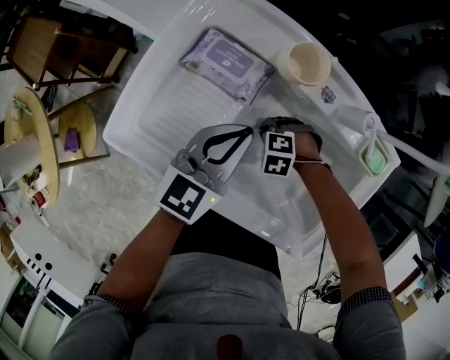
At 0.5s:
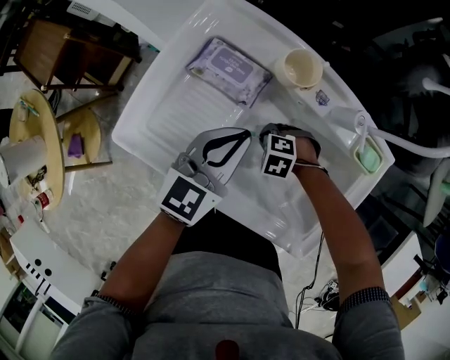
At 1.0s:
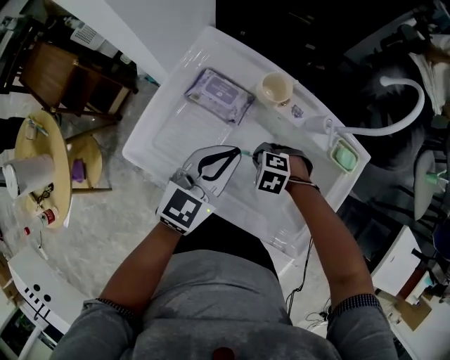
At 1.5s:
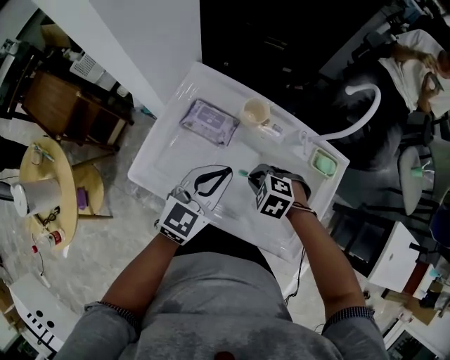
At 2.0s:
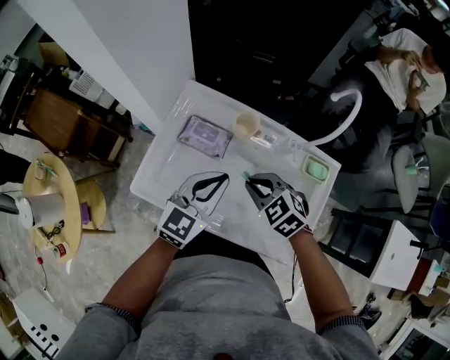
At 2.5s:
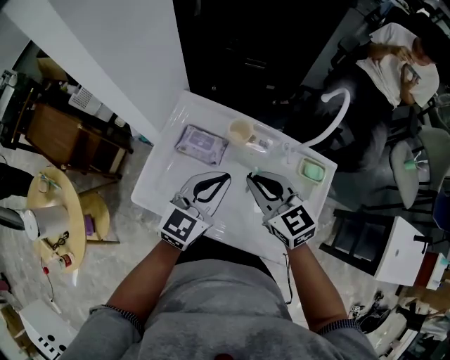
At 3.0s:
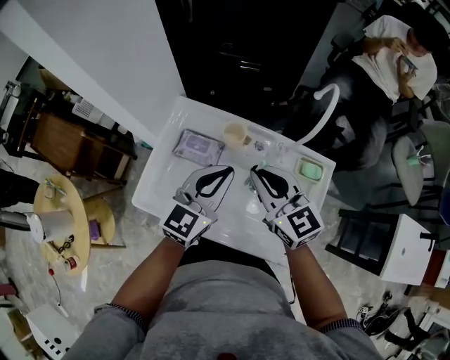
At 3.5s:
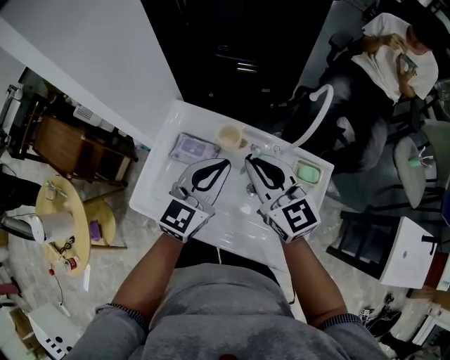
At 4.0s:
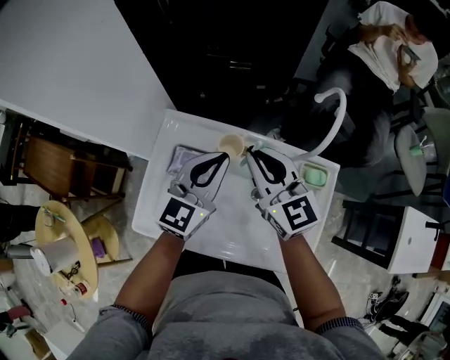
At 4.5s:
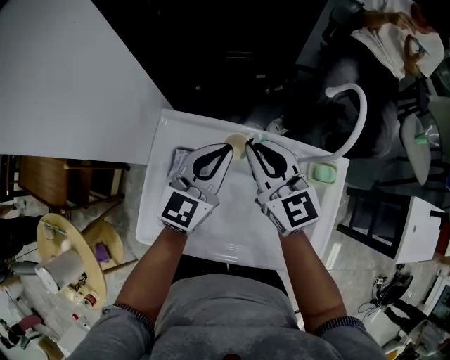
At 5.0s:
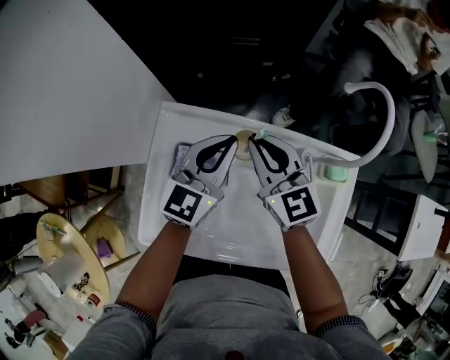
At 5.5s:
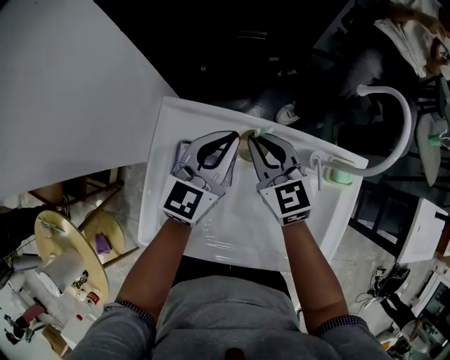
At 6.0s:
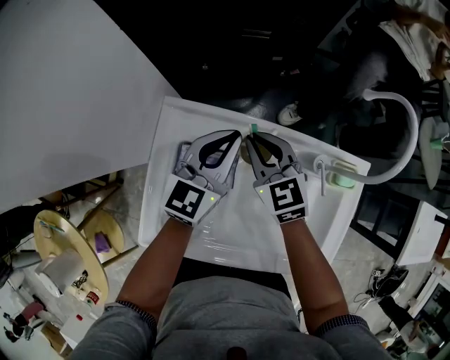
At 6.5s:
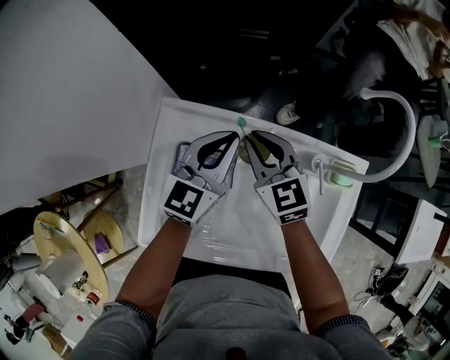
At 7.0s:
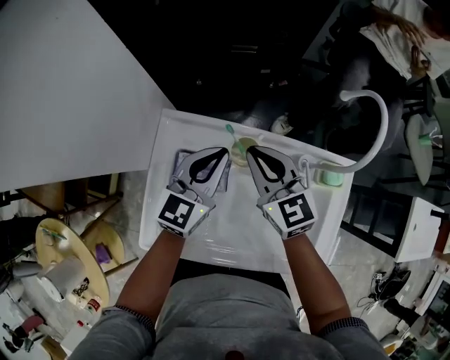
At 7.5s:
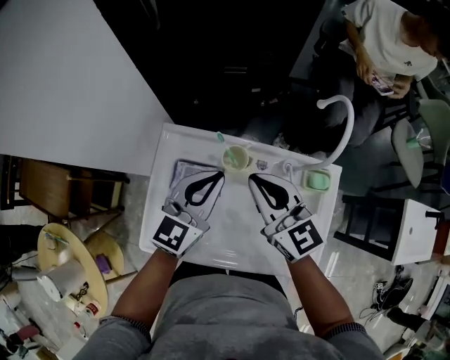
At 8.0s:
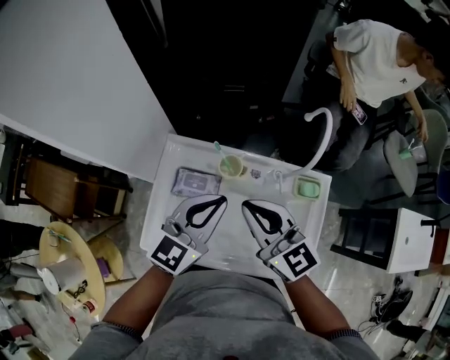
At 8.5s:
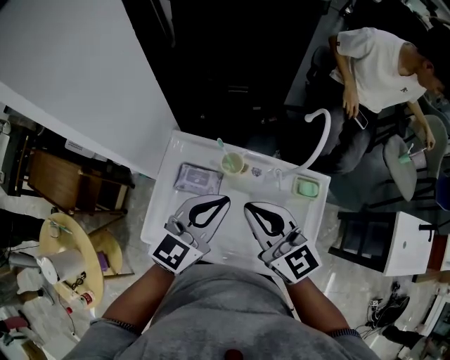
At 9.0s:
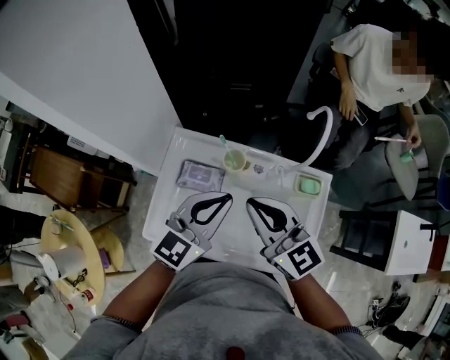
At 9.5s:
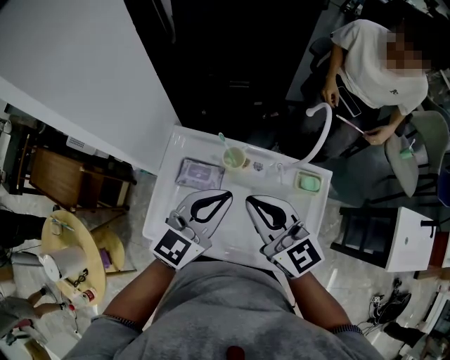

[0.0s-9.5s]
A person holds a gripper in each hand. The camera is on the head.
0.0s to 2.0s: The right gripper is displaced upward by about 30 cm, and rotates about 50 degrees. Meanwhile the left gripper goes roughly 15 cm upward.
2.0s to 4.0s: The left gripper goes approximately 10 cm forward. The right gripper goes approximately 20 cm forward and upward, and tilts its fingers about 40 degrees upward.
4.0s to 5.5s: Both grippers travel together downward and forward, about 15 cm.
5.5s to 7.5s: Both grippers travel together upward and backward, roughly 15 cm.
7.5s to 9.5s: Both grippers move backward and upward, roughly 10 cm.

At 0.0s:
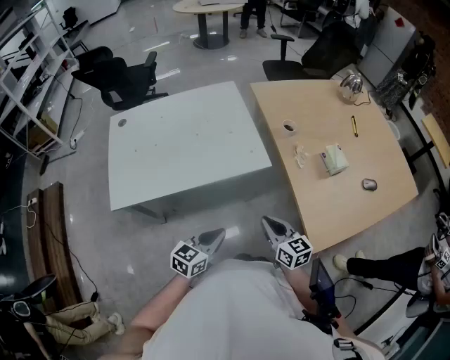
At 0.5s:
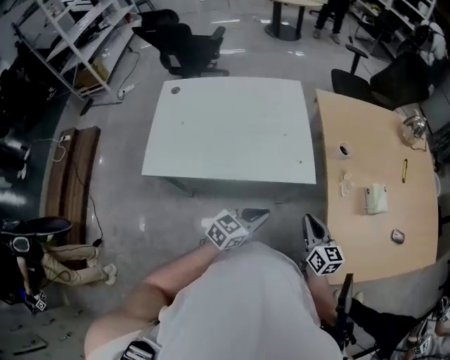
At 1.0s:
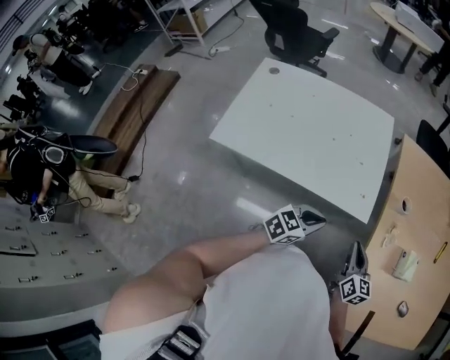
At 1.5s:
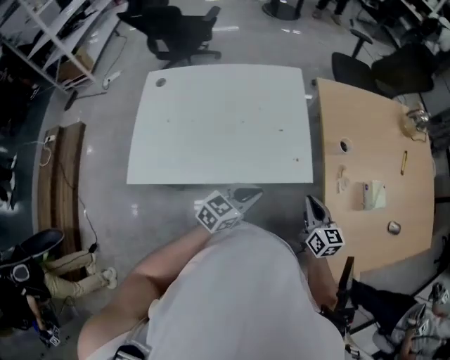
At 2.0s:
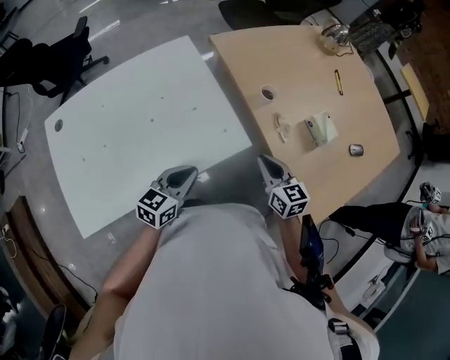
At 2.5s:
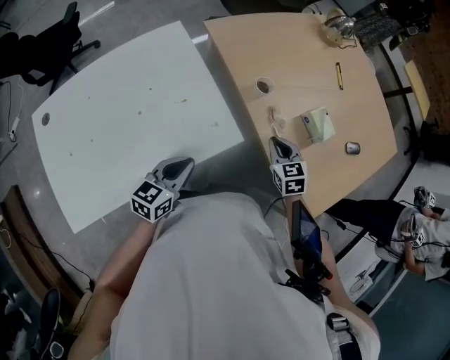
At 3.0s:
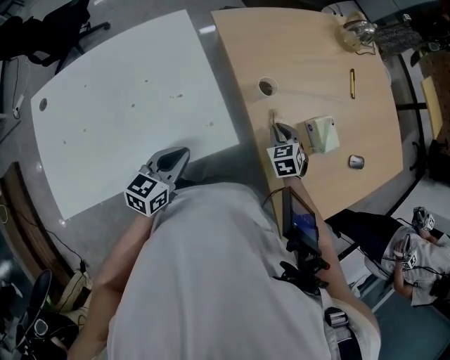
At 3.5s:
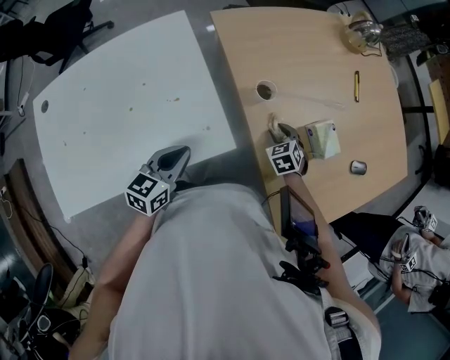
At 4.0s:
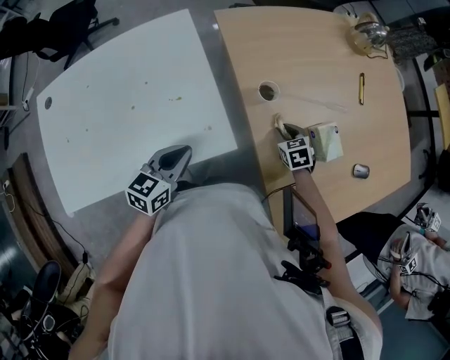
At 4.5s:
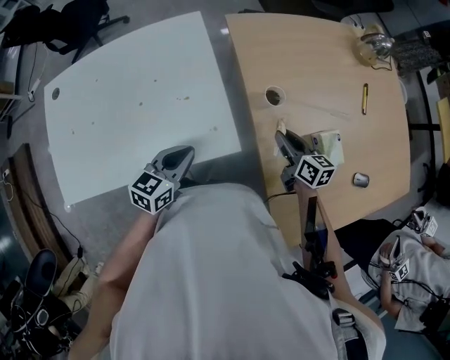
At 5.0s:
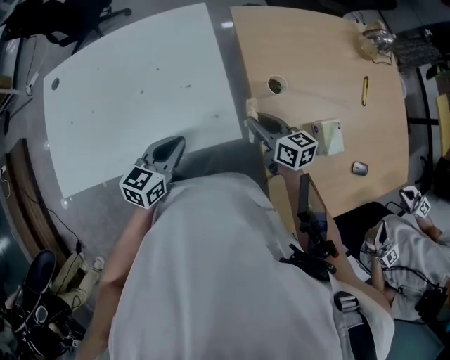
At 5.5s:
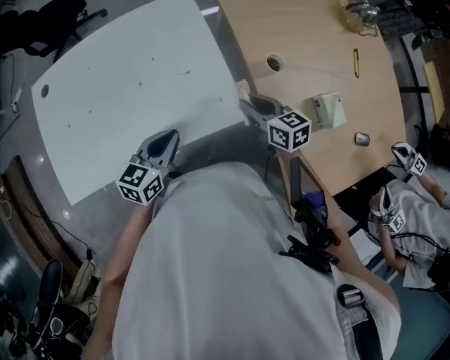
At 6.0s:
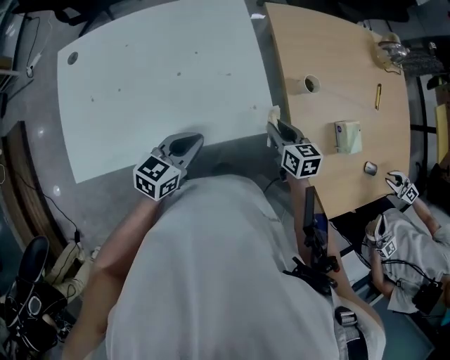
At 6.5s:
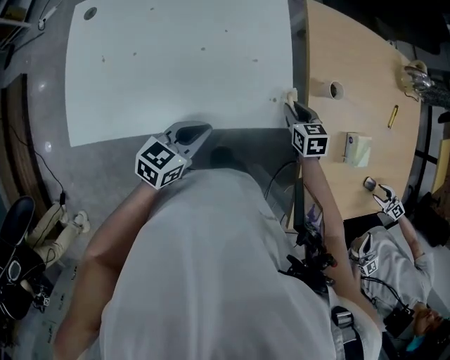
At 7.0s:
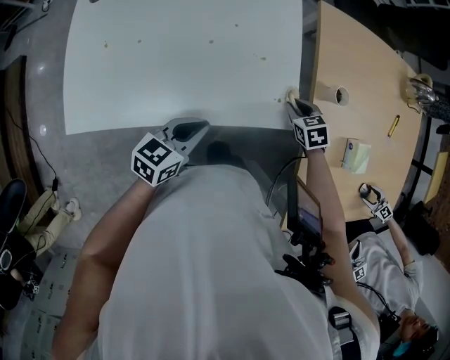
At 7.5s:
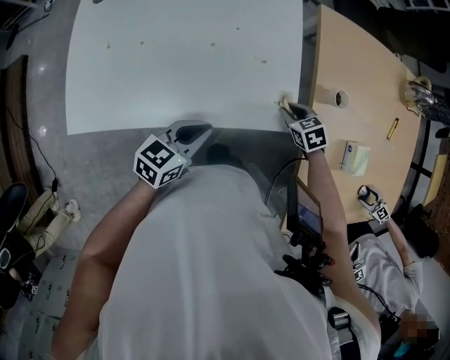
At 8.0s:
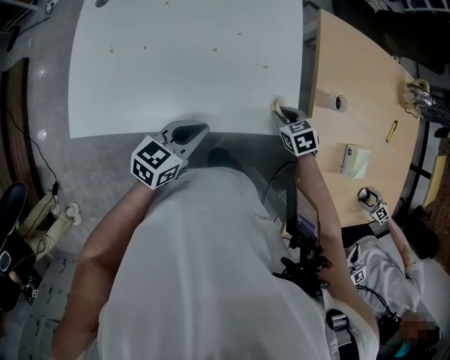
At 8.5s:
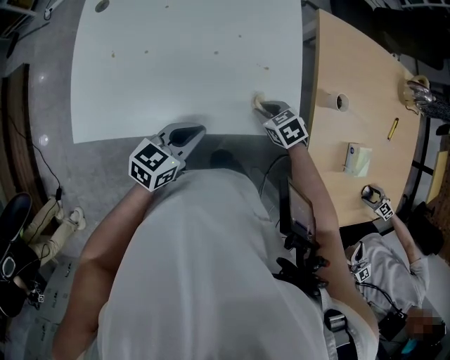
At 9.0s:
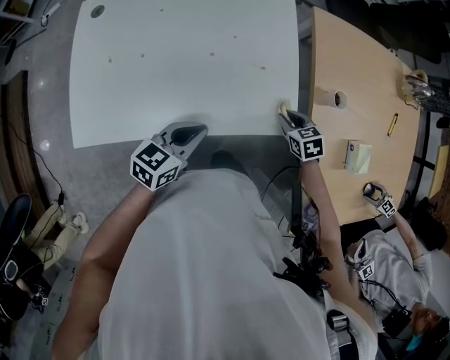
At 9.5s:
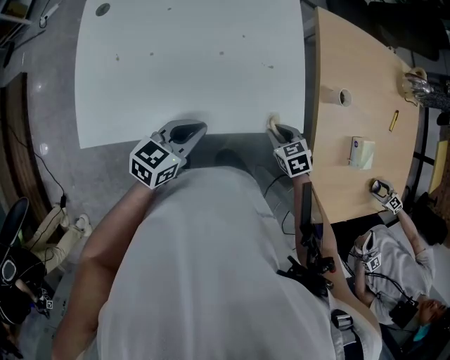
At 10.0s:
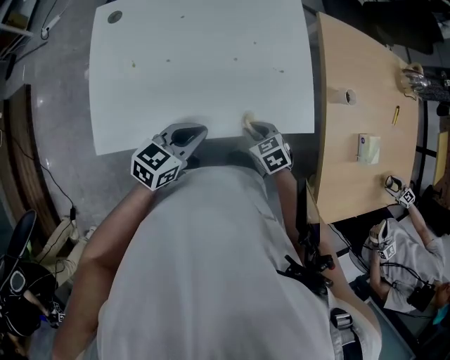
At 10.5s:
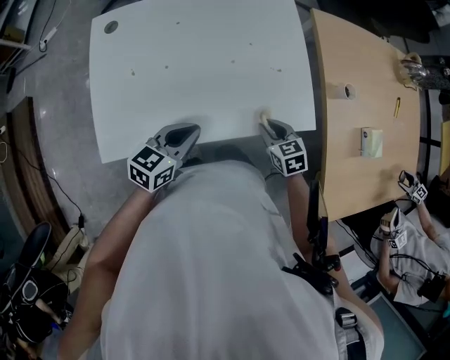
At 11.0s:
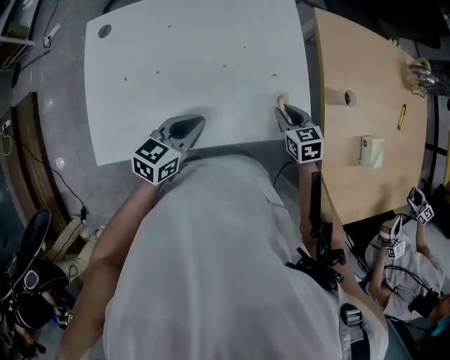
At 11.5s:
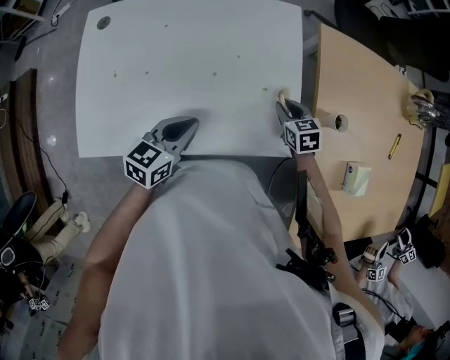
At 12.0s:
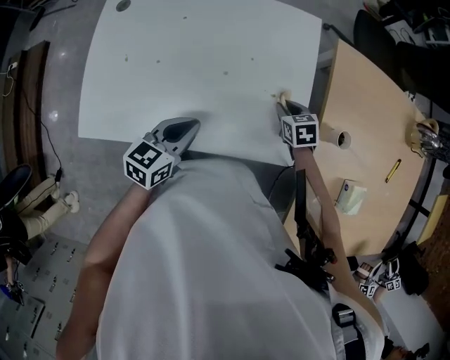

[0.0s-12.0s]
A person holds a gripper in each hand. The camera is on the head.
0.0s to 2.0s: The two grippers go some 20 cm forward.
2.0s to 4.0s: The right gripper moves forward, downward and to the right, roughly 25 cm, and tilts its fingers some 30 degrees downward, while the left gripper shifts roughly 10 cm forward.
4.0s to 6.0s: The right gripper is displaced to the left and upward by roughly 20 cm, and swivels approximately 30 degrees; the left gripper moves to the left and backward, about 10 cm.
6.0s to 8.0s: The right gripper heads downward, covering approximately 10 cm, and swivels some 40 degrees.
8.0s to 10.0s: The right gripper swings left and right, some 20 cm each way, with 2 reversals. Meanwhile the left gripper moves to the left, roughly 10 cm.
10.0s to 12.0s: The right gripper travels forward and to the right by some 25 cm. The left gripper shifts some 5 cm forward.

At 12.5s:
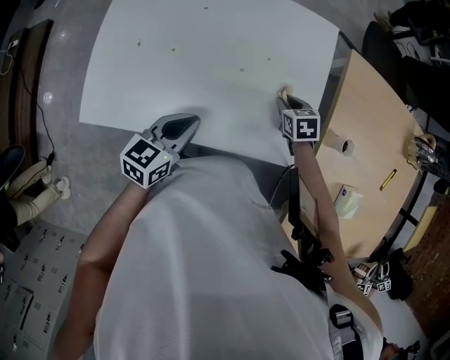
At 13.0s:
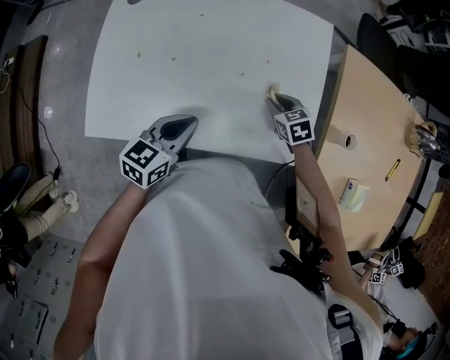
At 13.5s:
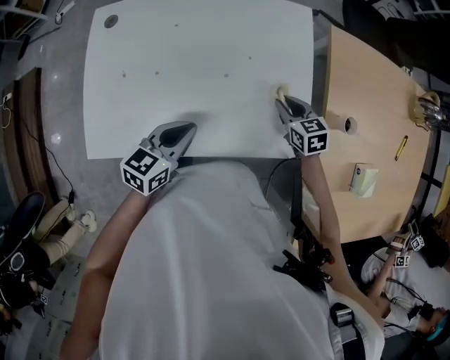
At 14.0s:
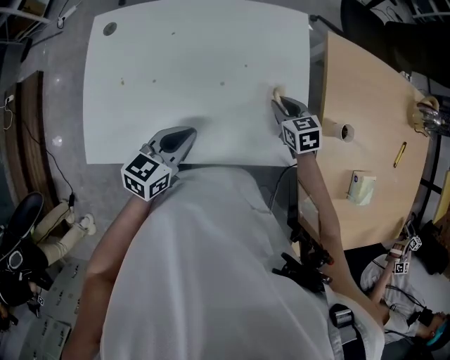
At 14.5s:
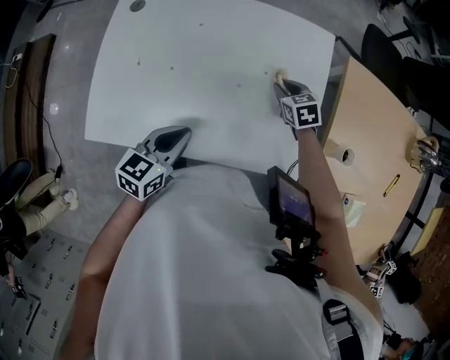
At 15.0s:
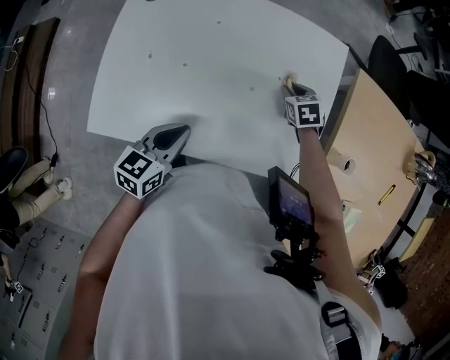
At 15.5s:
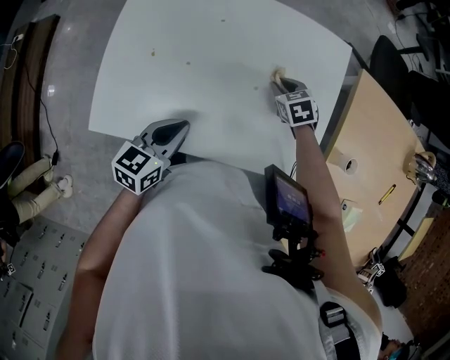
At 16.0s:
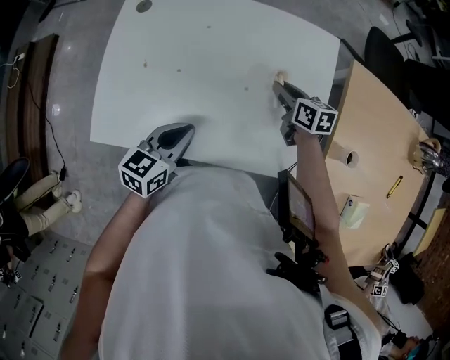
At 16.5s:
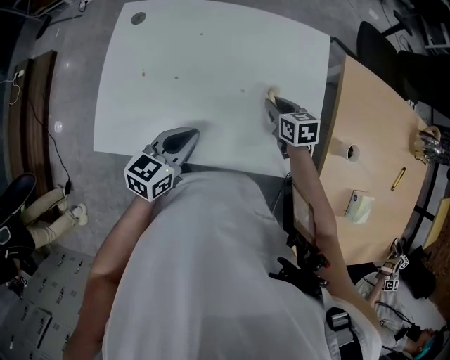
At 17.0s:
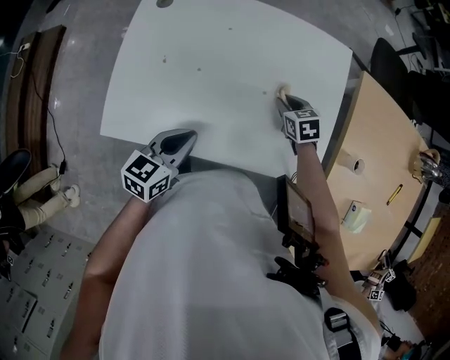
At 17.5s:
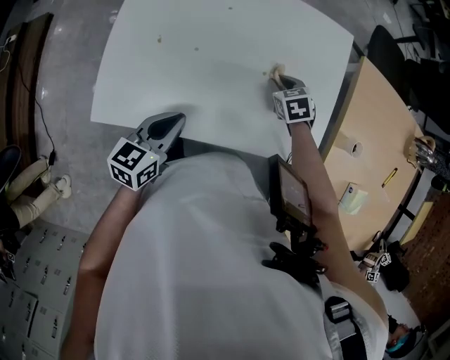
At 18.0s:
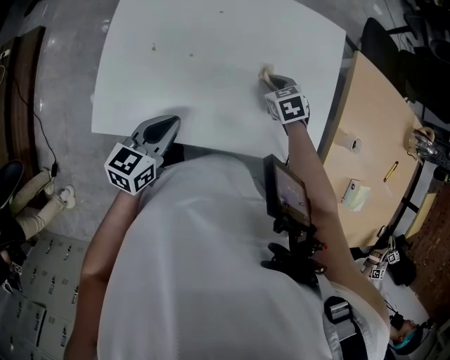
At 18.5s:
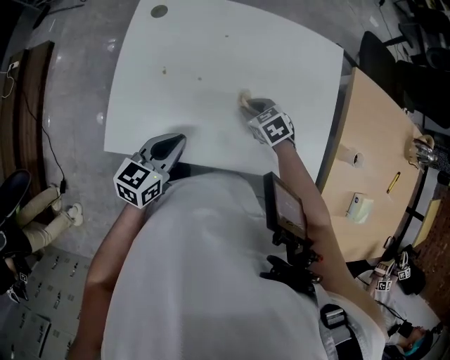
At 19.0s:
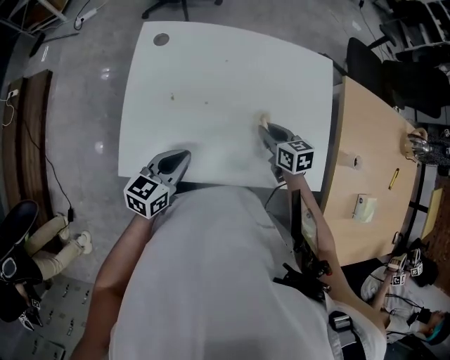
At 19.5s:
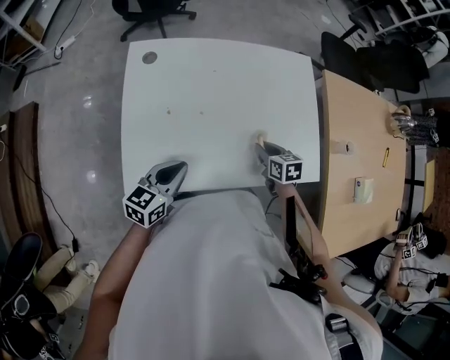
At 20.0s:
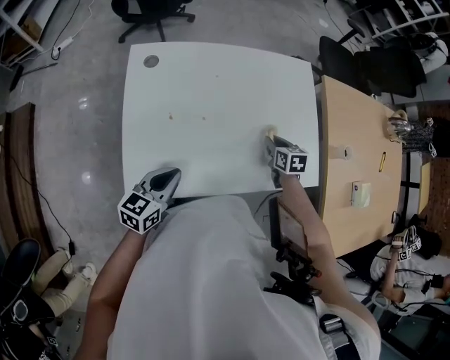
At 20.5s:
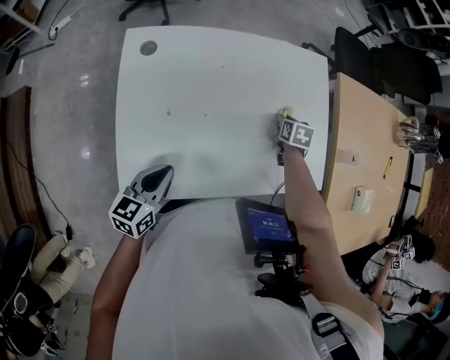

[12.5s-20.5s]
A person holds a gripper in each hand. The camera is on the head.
12.5s to 14.5s: The right gripper is displaced forward by roughly 10 cm.
14.5s to 16.5s: The right gripper moves backward, some 5 cm.
16.5s to 18.5s: Both grippers travel together to the left, approximately 10 cm. The right gripper swivels some 30 degrees.
18.5s to 20.5s: The left gripper moves some 10 cm, while the right gripper moves about 15 cm, and turns by some 60 degrees.
